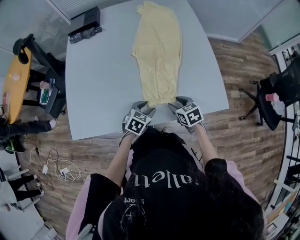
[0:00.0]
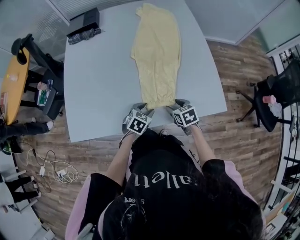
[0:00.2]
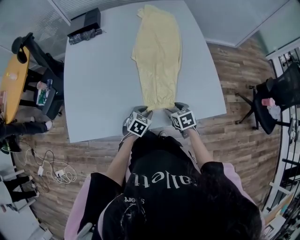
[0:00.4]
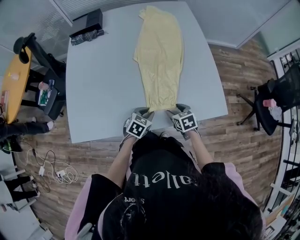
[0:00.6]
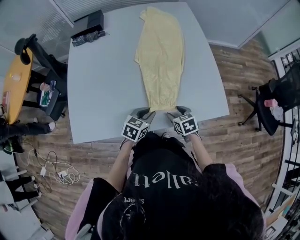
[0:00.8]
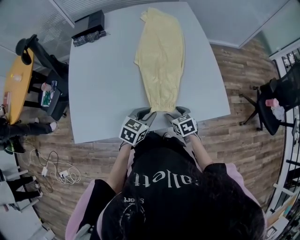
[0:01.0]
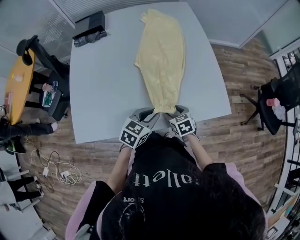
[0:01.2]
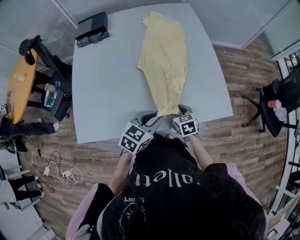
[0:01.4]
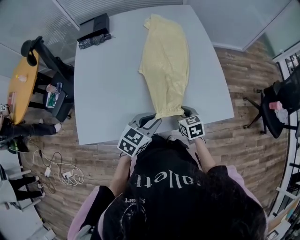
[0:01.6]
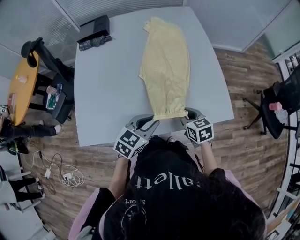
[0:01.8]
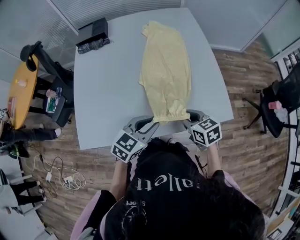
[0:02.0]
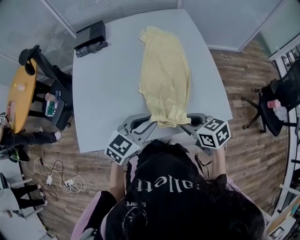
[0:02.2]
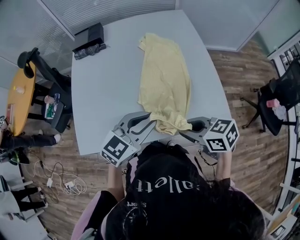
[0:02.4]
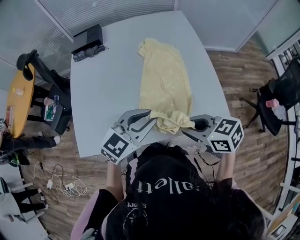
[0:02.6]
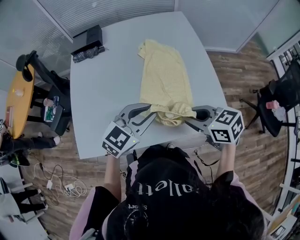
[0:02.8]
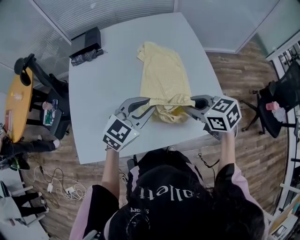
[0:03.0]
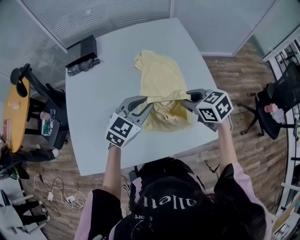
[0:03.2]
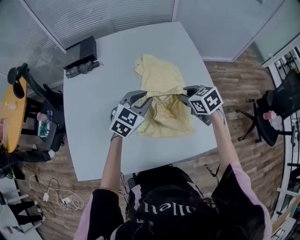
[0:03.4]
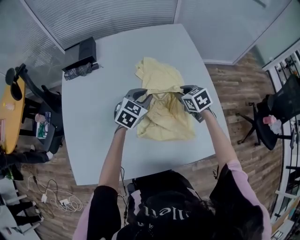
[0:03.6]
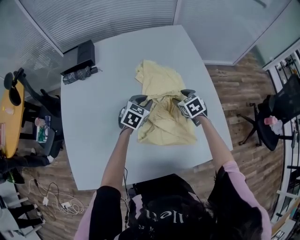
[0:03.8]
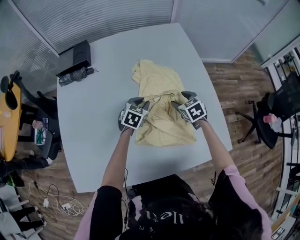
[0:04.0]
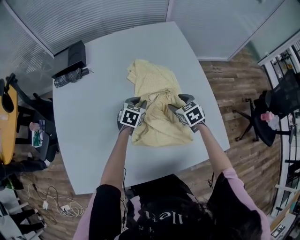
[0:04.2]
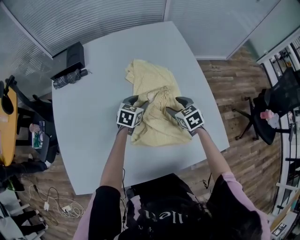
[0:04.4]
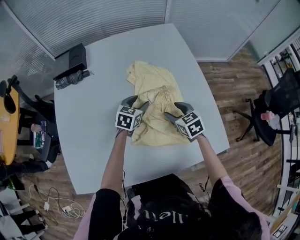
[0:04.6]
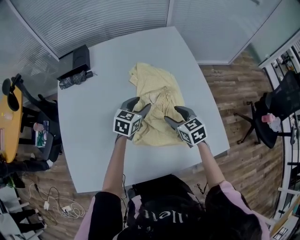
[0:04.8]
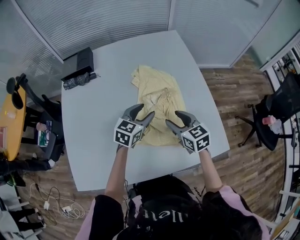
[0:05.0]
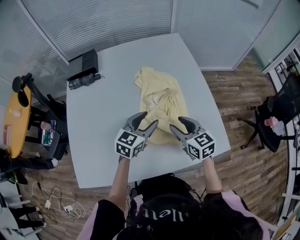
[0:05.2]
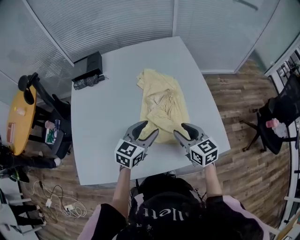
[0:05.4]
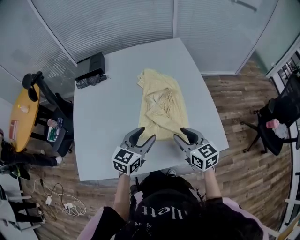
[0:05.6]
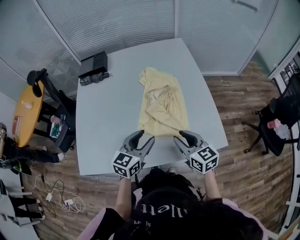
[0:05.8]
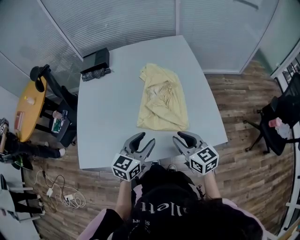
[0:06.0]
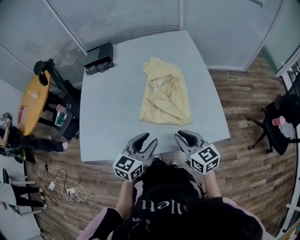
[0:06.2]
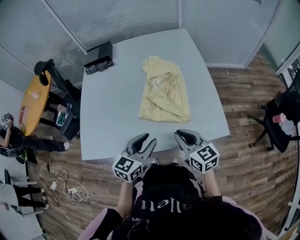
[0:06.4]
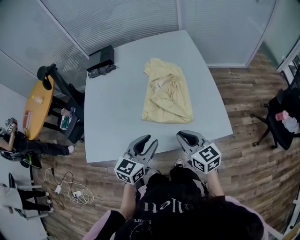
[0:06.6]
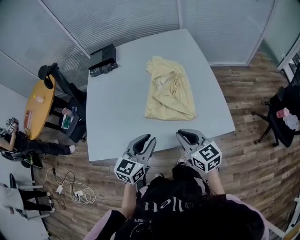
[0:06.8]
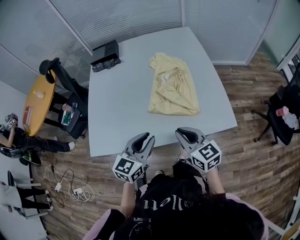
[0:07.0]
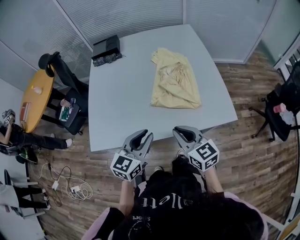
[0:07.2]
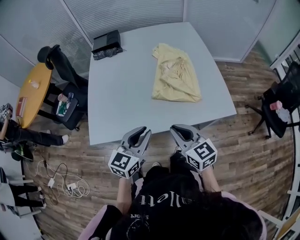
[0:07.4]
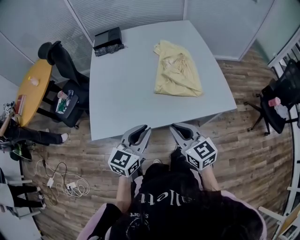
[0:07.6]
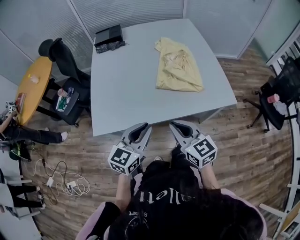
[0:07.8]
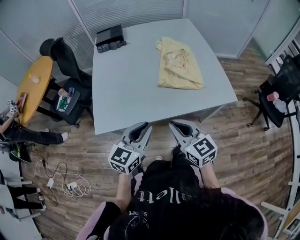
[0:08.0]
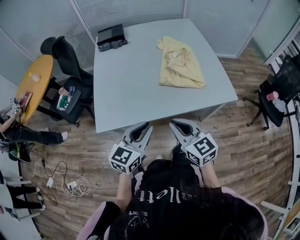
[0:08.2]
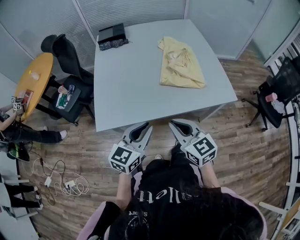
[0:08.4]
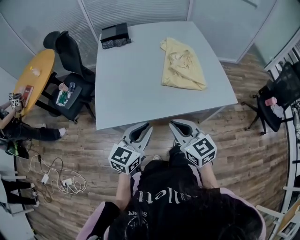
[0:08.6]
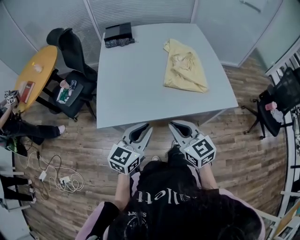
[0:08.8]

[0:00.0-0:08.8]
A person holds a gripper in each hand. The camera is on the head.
0:00.0 to 0:01.4: The left gripper moves upward, about 15 cm, and closes up.
0:01.4 to 0:03.0: The right gripper travels upward by about 20 cm, swivels about 20 degrees, and closes up, while the left gripper shifts about 15 cm forward and upward, and changes its angle by roughly 20 degrees.
0:03.0 to 0:04.4: The left gripper goes about 30 cm downward and forward, turns by roughly 30 degrees, and opens; the right gripper shifts some 25 cm forward and downward, rotates about 20 degrees, and opens up.
0:04.4 to 0:05.8: The two grippers go about 30 cm backward and upward. The right gripper turns by roughly 30 degrees, and closes; the left gripper changes its angle by roughly 20 degrees.
0:05.8 to 0:07.4: Both grippers travel together backward and to the left, some 20 cm. The left gripper closes its fingers. Meanwhile the right gripper closes its fingers.
0:07.4 to 0:08.8: The left gripper shifts about 10 cm backward and to the left. Meanwhile the right gripper moves to the left and backward, roughly 10 cm.

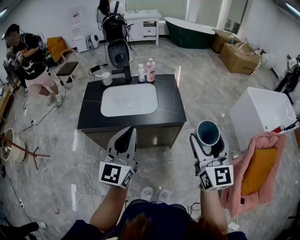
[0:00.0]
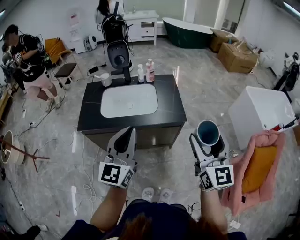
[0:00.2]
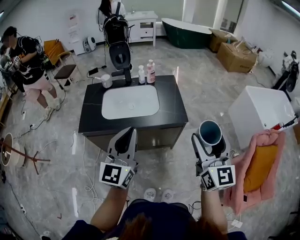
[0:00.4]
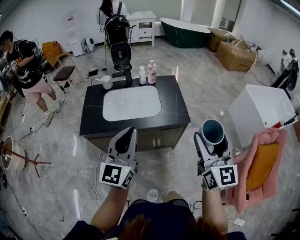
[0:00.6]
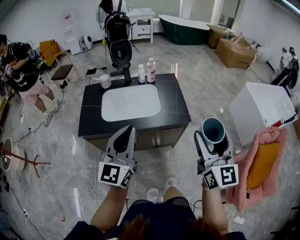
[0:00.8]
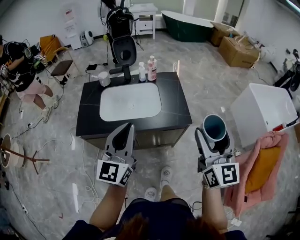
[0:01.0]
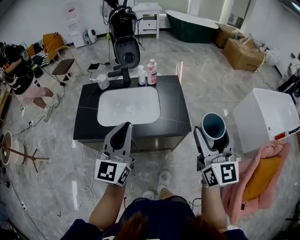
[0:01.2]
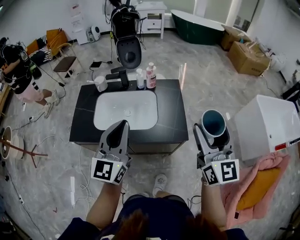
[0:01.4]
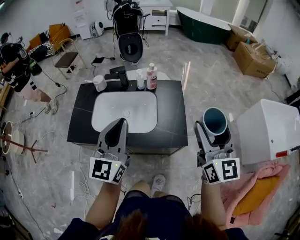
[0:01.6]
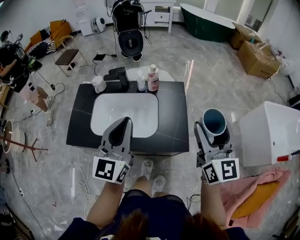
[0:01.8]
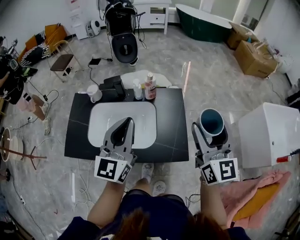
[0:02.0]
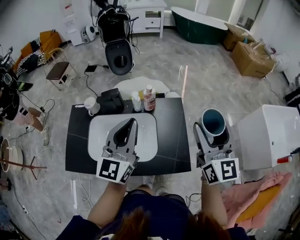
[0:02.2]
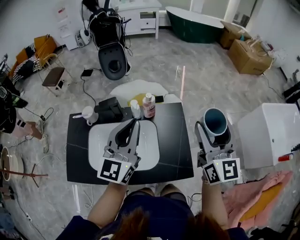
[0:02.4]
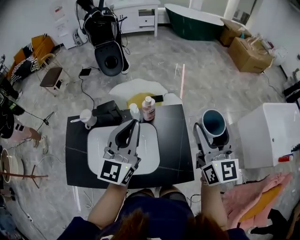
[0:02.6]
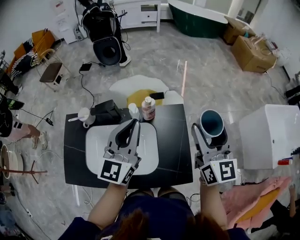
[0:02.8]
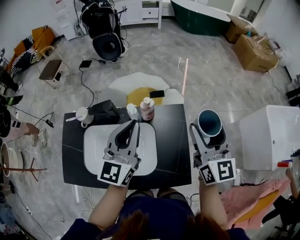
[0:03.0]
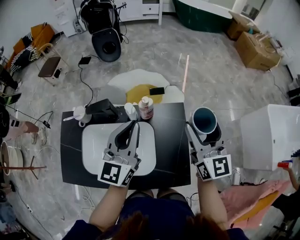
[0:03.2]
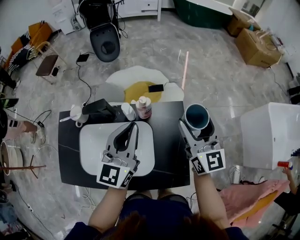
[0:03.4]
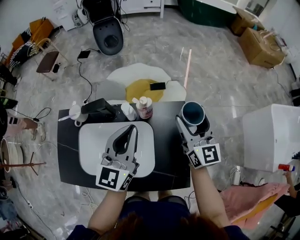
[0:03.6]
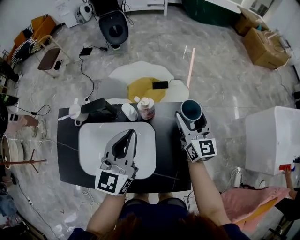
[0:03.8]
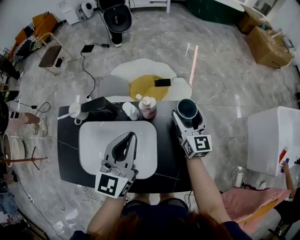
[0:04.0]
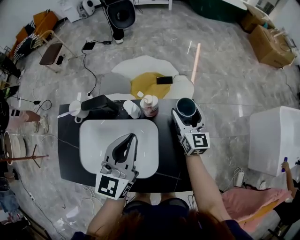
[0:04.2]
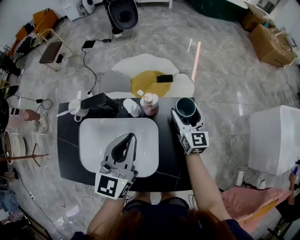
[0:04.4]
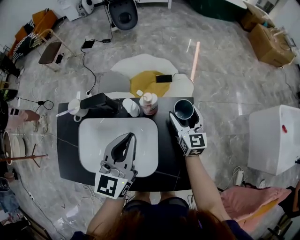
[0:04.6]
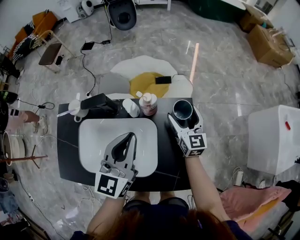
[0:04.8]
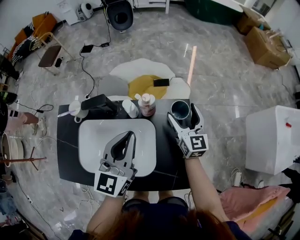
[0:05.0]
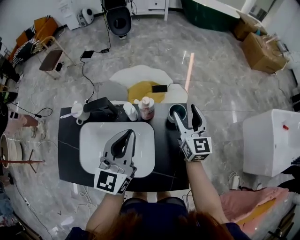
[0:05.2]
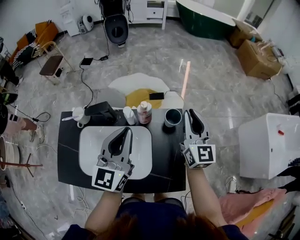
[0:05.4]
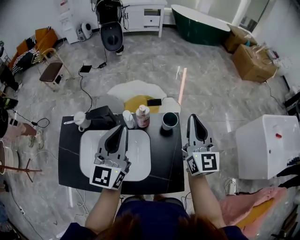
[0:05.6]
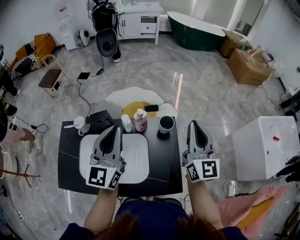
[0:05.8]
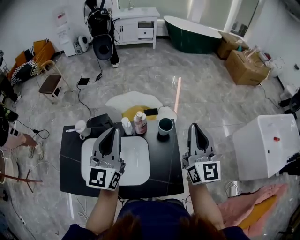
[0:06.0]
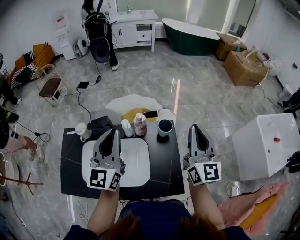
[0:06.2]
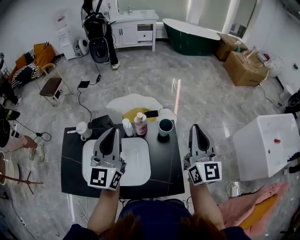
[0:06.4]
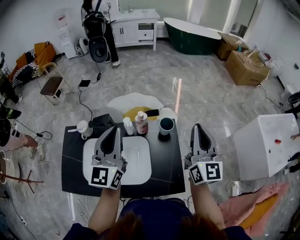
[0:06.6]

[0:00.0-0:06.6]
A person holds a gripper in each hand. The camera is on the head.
0:00.0 to 0:01.6: Both grippers move forward, about 30 cm.
0:01.6 to 0:03.2: Both grippers travel together forward, approximately 35 cm.
0:03.2 to 0:05.0: The left gripper goes about 5 cm downward. Meanwhile the right gripper heads downward and forward, covering approximately 20 cm.
0:05.0 to 0:06.6: The right gripper goes some 30 cm upward and backward, turns by some 20 degrees, and closes, while the left gripper travels upward by roughly 15 cm.

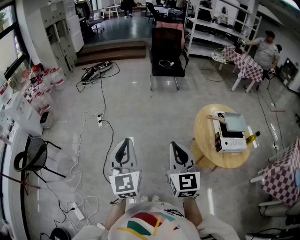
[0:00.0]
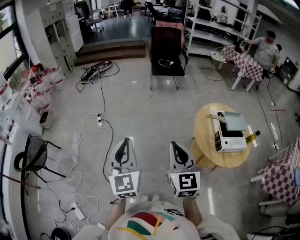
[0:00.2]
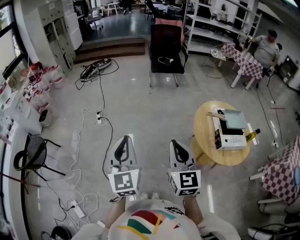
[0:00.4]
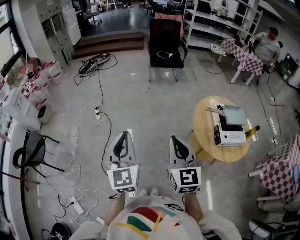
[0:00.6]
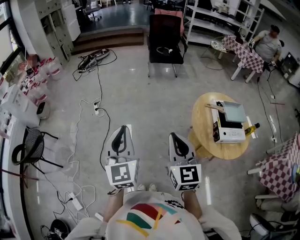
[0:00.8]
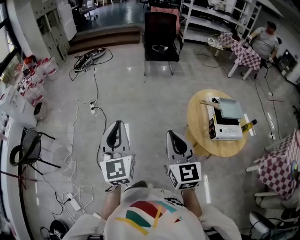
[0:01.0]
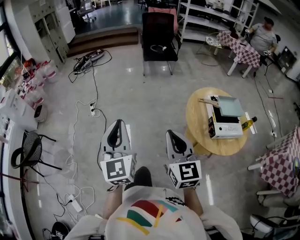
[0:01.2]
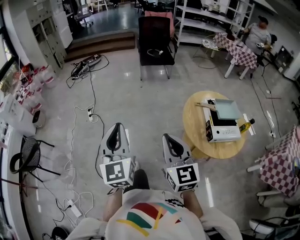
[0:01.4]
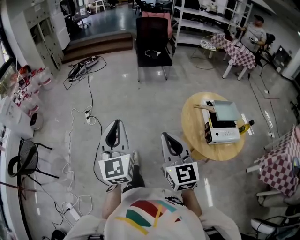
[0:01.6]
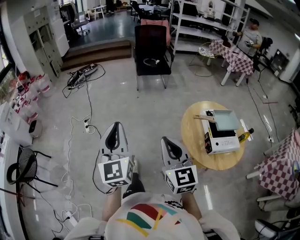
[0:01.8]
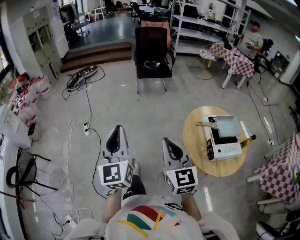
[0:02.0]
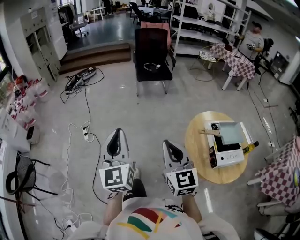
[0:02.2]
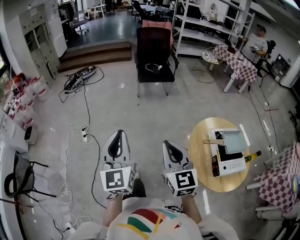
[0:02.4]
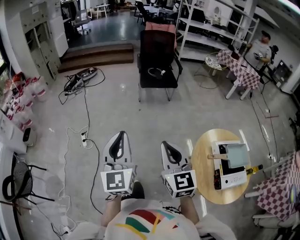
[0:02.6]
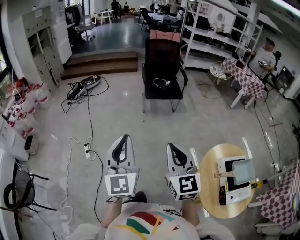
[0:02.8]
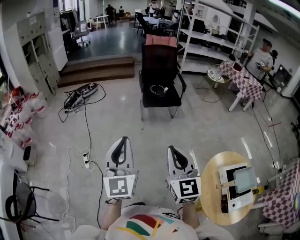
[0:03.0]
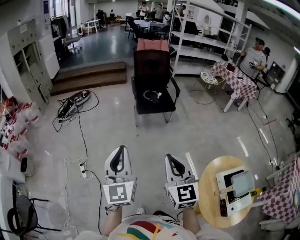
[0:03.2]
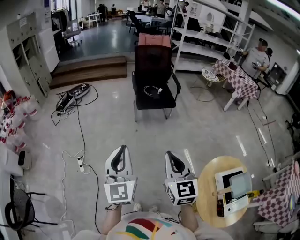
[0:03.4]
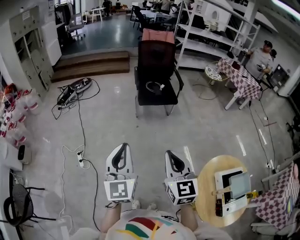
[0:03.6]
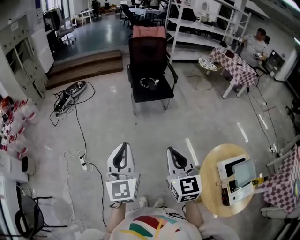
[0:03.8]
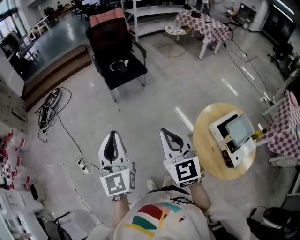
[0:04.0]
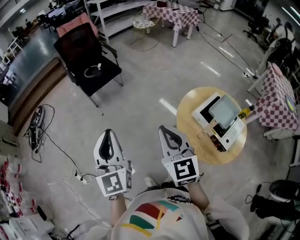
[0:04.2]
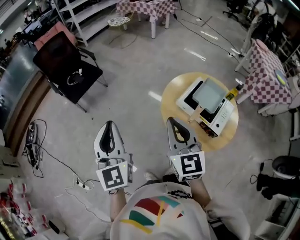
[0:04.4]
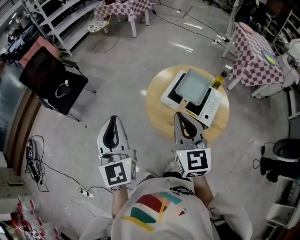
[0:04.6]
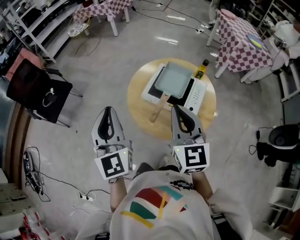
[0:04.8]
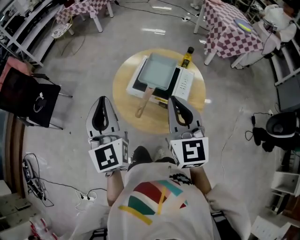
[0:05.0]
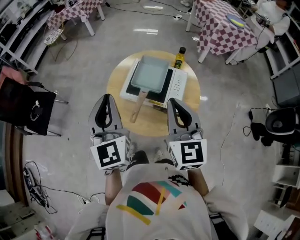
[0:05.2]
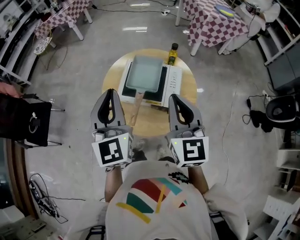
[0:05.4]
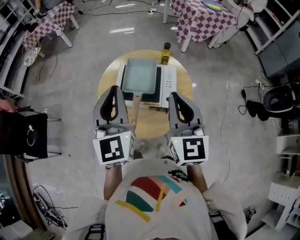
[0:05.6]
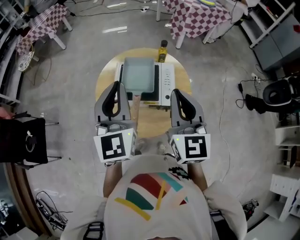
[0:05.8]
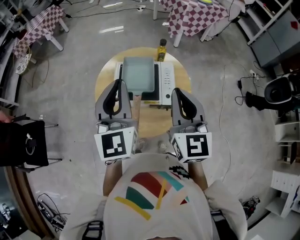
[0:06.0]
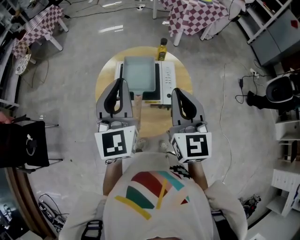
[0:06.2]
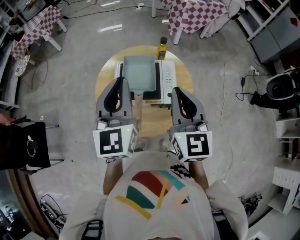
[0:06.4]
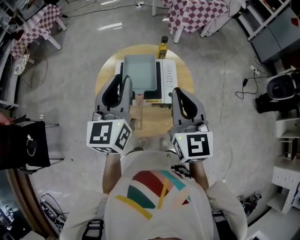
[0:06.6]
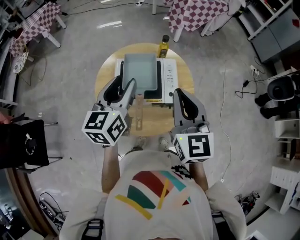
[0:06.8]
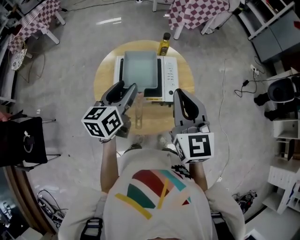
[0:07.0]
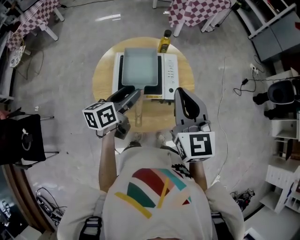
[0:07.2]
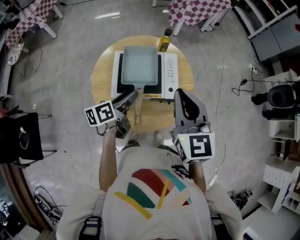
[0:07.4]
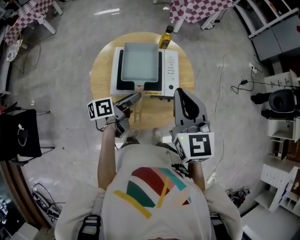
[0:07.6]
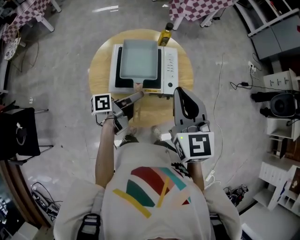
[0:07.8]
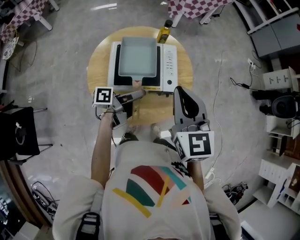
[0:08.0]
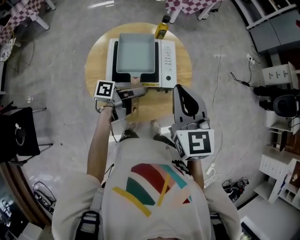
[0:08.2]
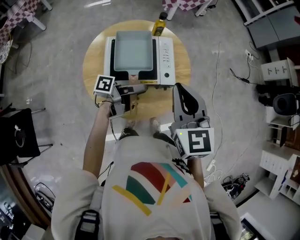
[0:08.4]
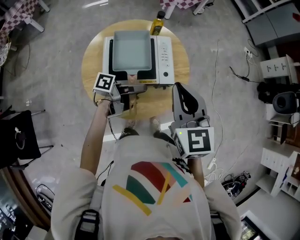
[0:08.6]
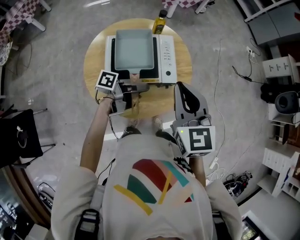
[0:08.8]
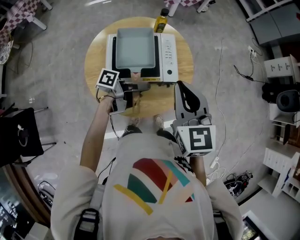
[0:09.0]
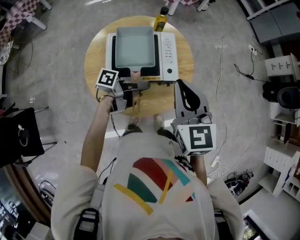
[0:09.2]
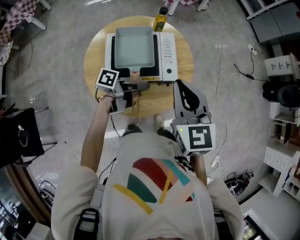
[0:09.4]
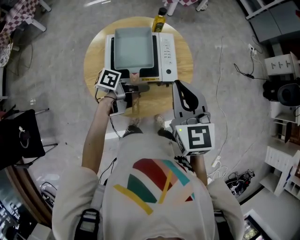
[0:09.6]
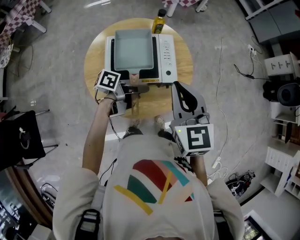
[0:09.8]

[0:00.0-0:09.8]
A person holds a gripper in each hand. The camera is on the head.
0:00.0 to 0:01.4: Both grippers travel together to the right, some 5 cm.
0:01.4 to 0:02.8: Both grippers travel together forward, about 35 cm.
0:02.8 to 0:04.2: The left gripper shifts by approximately 20 cm, and swivels about 30 degrees, while the right gripper ends up approximately 15 cm from where it was, and turns by roughly 30 degrees.
0:04.2 to 0:05.6: The two grippers travel together, about 40 cm. The left gripper turns by some 60 degrees, while the right gripper swivels roughly 60 degrees.
0:05.6 to 0:07.0: The left gripper goes about 15 cm downward and forward, changes its angle by about 50 degrees, and opens its fingers.
0:07.0 to 0:08.4: The left gripper travels downward by roughly 15 cm, and turns by approximately 80 degrees.
0:08.4 to 0:09.8: The left gripper closes its fingers.
